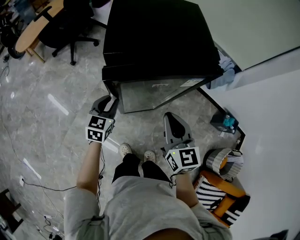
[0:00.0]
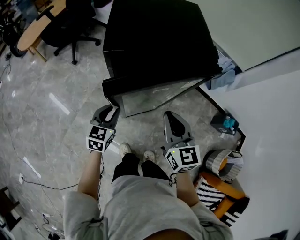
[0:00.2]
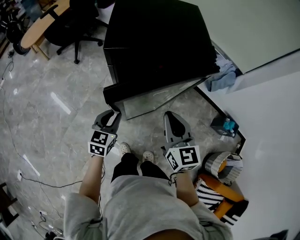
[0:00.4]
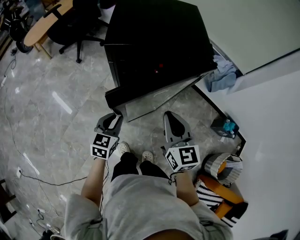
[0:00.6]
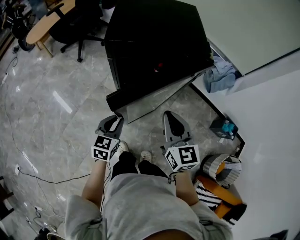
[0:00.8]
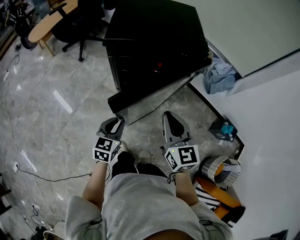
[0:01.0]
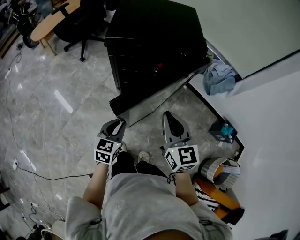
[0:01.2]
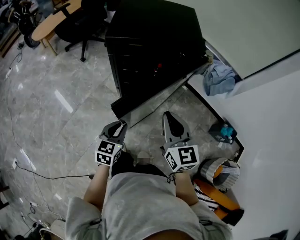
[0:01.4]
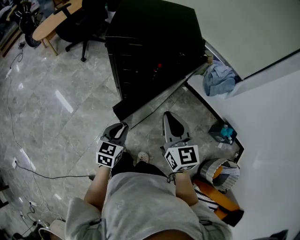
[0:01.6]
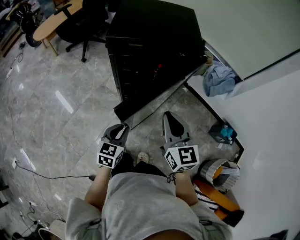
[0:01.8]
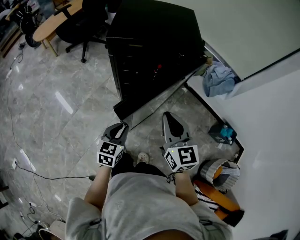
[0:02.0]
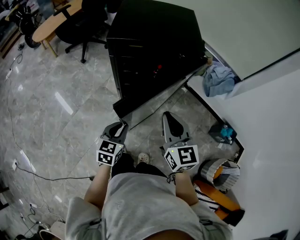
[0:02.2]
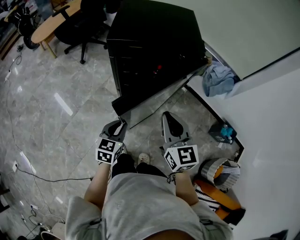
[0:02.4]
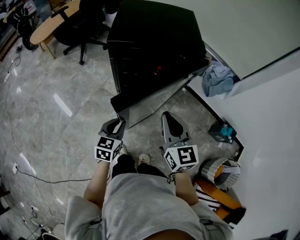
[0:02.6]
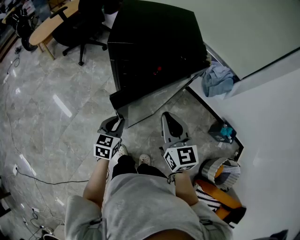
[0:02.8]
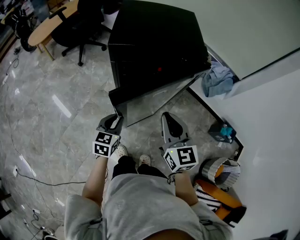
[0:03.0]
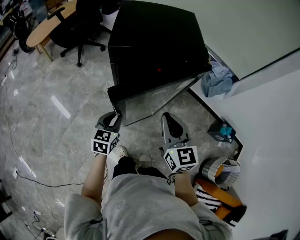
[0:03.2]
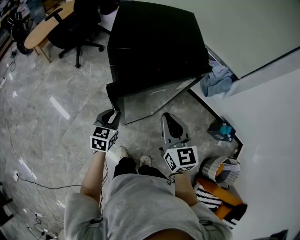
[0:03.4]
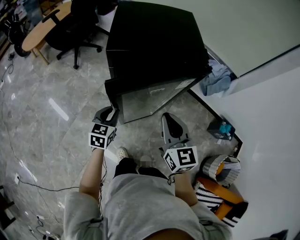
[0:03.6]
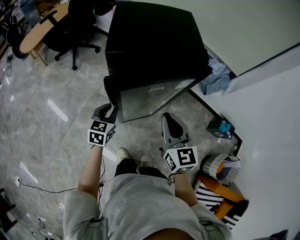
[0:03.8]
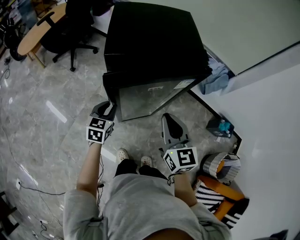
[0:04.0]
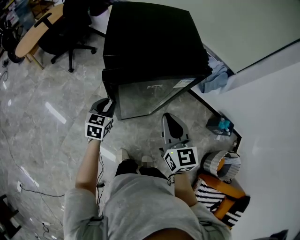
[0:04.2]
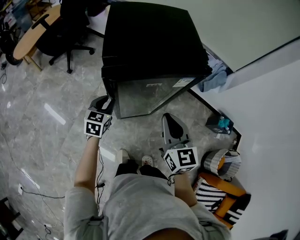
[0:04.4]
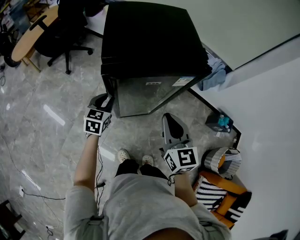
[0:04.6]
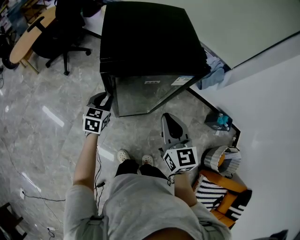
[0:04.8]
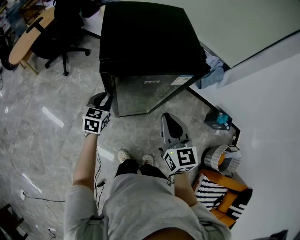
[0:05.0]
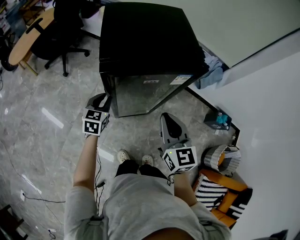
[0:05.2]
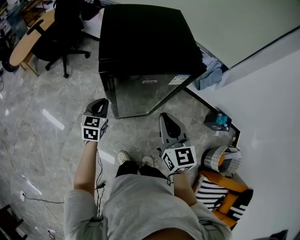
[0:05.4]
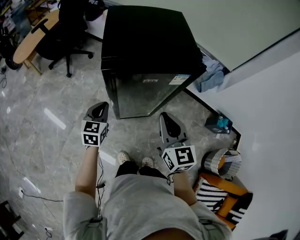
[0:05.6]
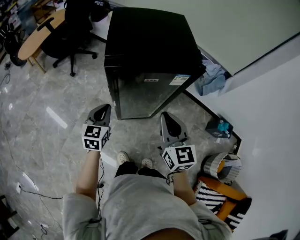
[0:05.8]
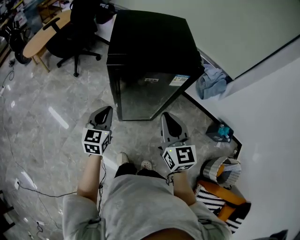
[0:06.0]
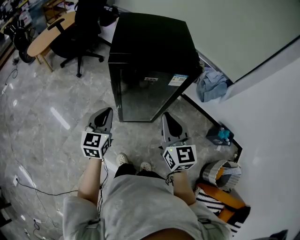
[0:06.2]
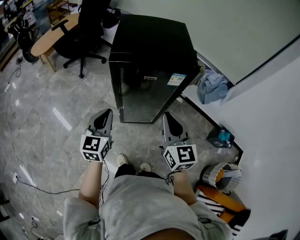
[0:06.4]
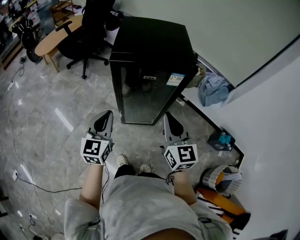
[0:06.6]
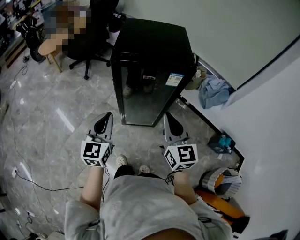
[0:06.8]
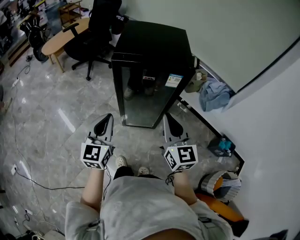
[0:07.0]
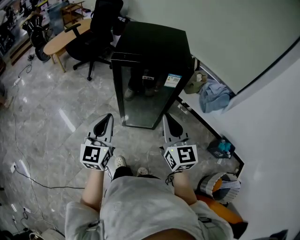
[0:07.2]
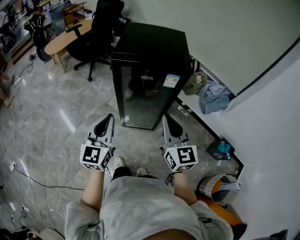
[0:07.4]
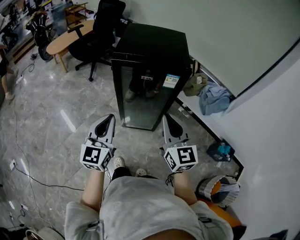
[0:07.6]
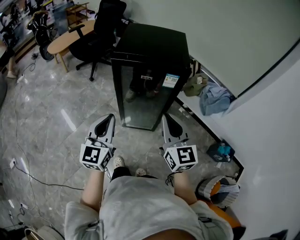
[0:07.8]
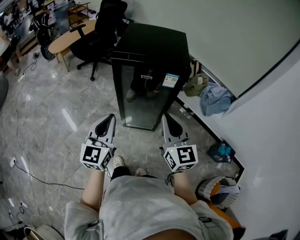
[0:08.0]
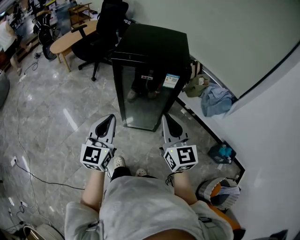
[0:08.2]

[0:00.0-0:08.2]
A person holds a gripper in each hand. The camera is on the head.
0:00.0 to 0:01.6: The left gripper shifts approximately 20 cm backward and to the right; the right gripper heads backward and to the right, covering some 10 cm.
0:01.6 to 0:03.2: The left gripper travels forward and to the left by some 10 cm.
0:03.2 to 0:05.0: The left gripper heads forward, covering roughly 15 cm.
0:05.0 to 0:06.6: The left gripper goes roughly 25 cm backward and upward, and swivels about 30 degrees; the right gripper is displaced backward and upward by some 10 cm.
0:06.6 to 0:08.2: The left gripper is displaced backward and upward by approximately 10 cm; the right gripper moves backward, approximately 5 cm.

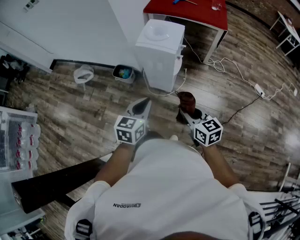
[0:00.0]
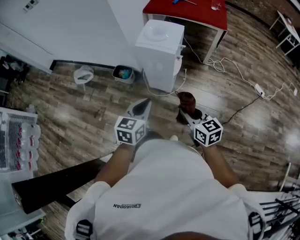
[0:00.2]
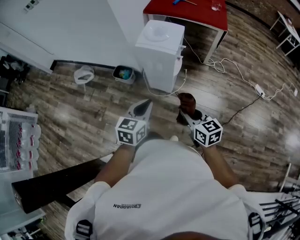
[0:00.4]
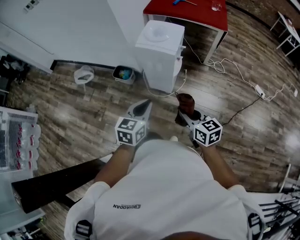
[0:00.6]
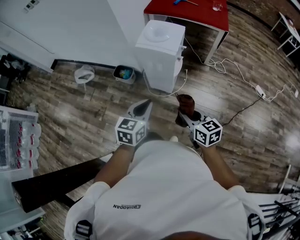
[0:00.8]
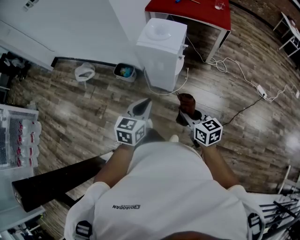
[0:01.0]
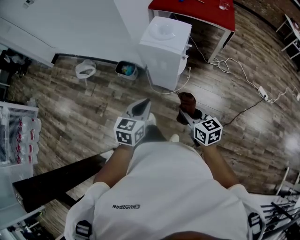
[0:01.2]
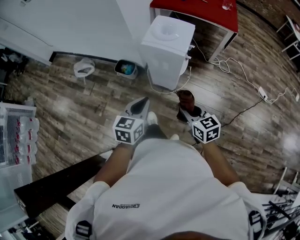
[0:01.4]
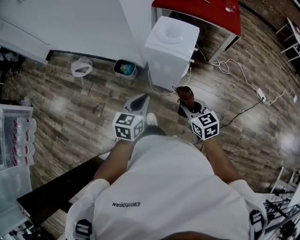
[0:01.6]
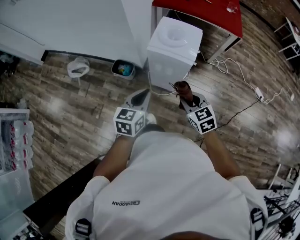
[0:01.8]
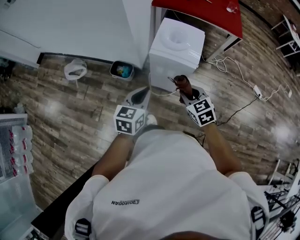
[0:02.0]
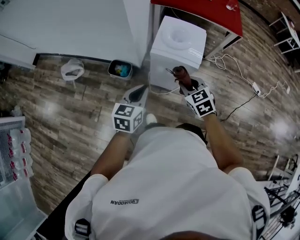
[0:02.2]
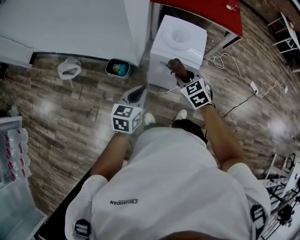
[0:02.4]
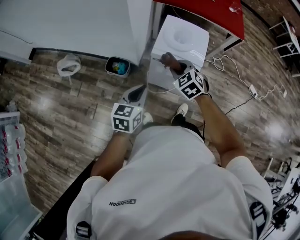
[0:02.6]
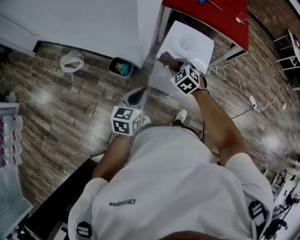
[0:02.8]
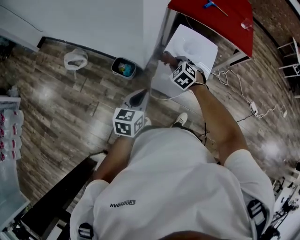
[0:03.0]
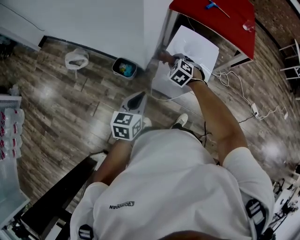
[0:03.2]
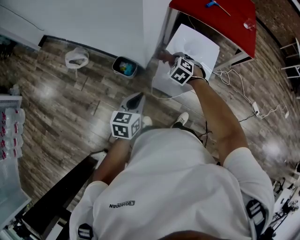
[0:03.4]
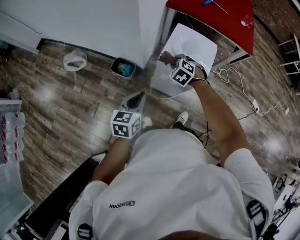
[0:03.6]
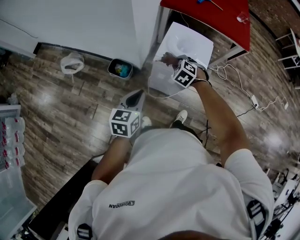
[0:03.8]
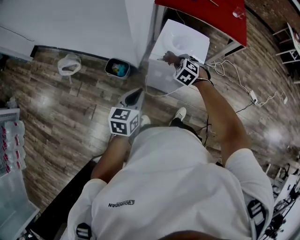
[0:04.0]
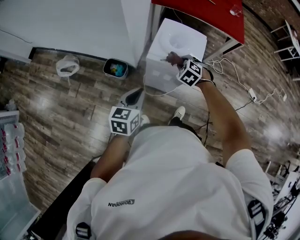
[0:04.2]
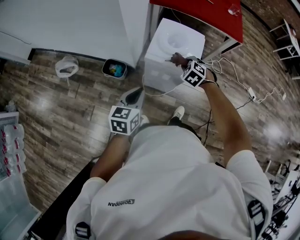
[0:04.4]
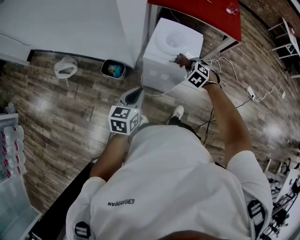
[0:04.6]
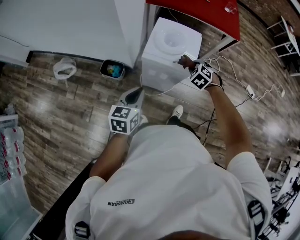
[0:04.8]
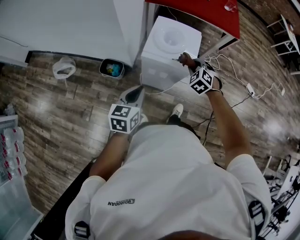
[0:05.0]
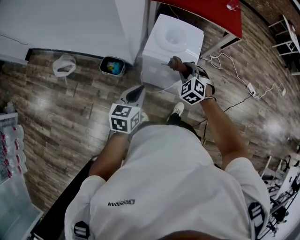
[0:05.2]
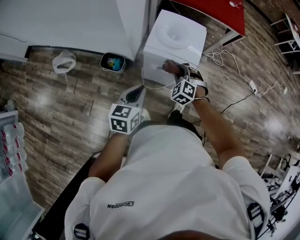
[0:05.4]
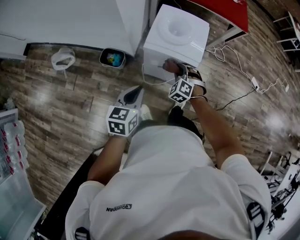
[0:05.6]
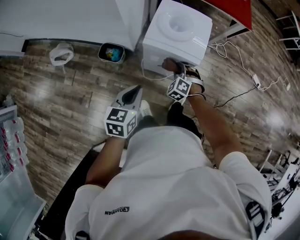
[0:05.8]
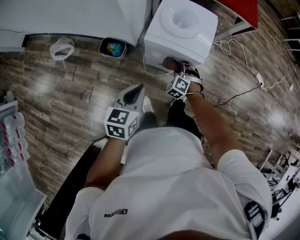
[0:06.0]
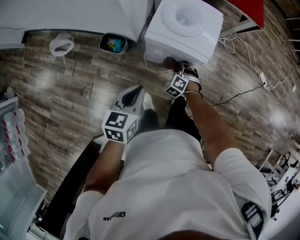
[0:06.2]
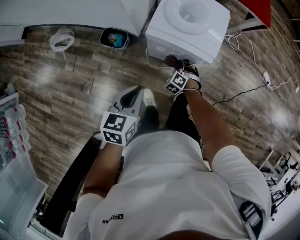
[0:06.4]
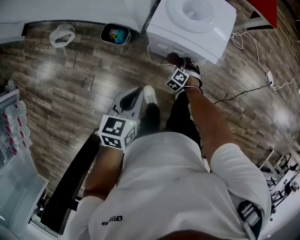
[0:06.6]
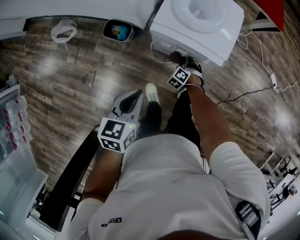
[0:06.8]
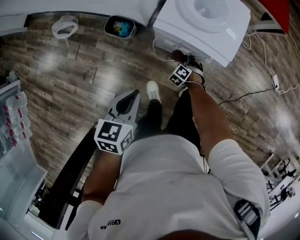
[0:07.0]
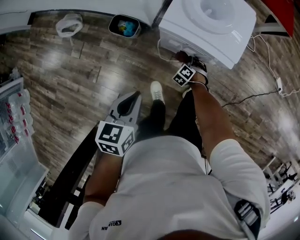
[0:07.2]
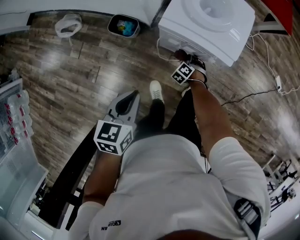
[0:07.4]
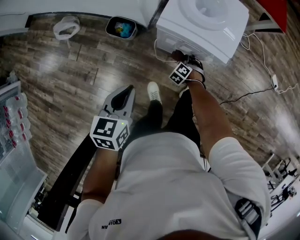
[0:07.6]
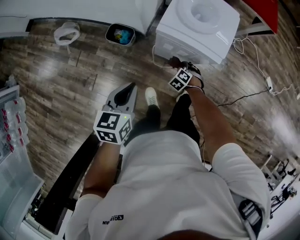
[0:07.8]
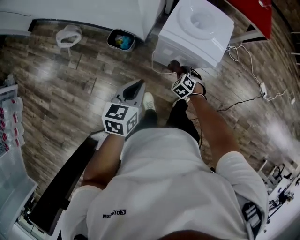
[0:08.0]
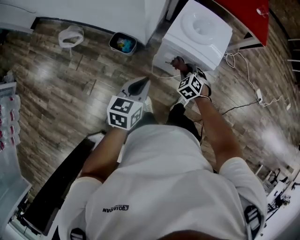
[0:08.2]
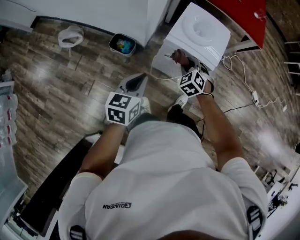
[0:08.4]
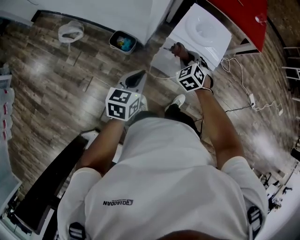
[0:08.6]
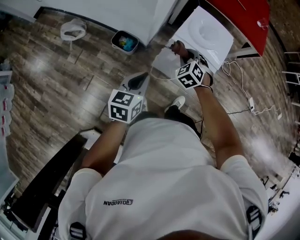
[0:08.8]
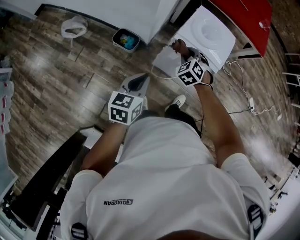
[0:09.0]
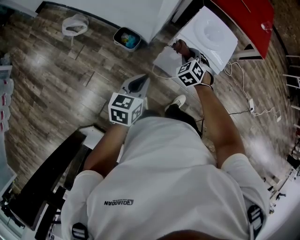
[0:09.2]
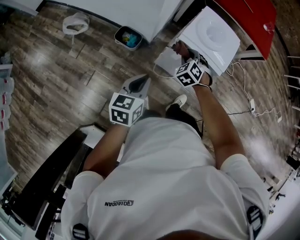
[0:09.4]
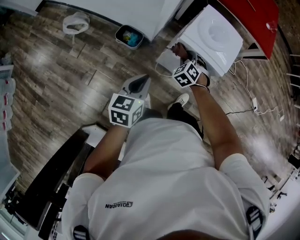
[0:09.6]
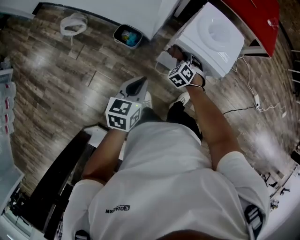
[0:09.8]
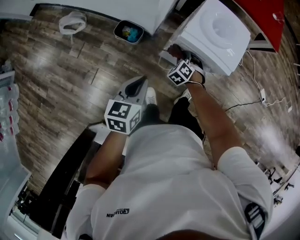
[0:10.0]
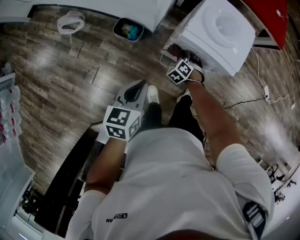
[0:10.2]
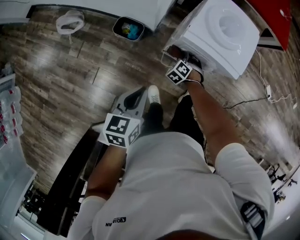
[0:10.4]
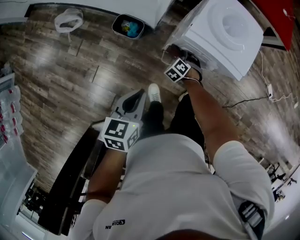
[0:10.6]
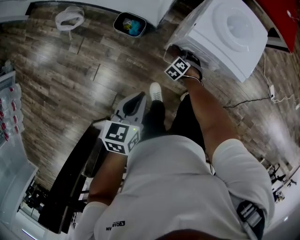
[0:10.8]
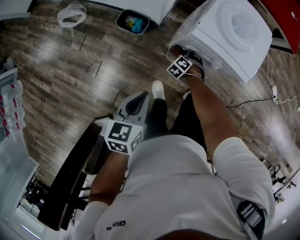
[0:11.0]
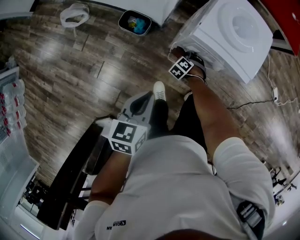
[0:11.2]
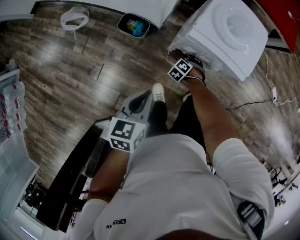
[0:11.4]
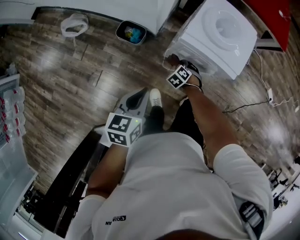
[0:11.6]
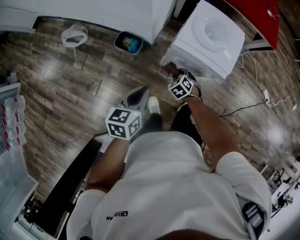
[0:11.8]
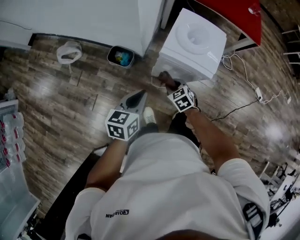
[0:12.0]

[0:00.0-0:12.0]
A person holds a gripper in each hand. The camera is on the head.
0:00.0 to 0:01.6: The right gripper travels forward by some 10 cm. Meanwhile the left gripper travels forward and to the left by roughly 10 cm.
0:01.6 to 0:03.0: The left gripper travels forward and to the left by about 15 cm, while the right gripper moves forward and to the left, some 35 cm, and rotates around the line of its fingers by about 40 degrees, counterclockwise from behind.
0:03.0 to 0:04.4: The right gripper heads to the right, covering approximately 15 cm.
0:04.4 to 0:06.0: The right gripper heads downward and backward, covering roughly 15 cm.
0:06.0 to 0:07.6: The right gripper is displaced downward by some 15 cm, while the left gripper ends up about 5 cm from where it was.
0:07.6 to 0:09.0: The right gripper goes about 30 cm upward, and turns by about 20 degrees.
0:09.0 to 0:10.4: The right gripper moves downward, roughly 25 cm, while the left gripper goes about 5 cm downward.
0:10.4 to 0:12.0: The right gripper goes approximately 15 cm upward and backward, and rotates about 40 degrees, while the left gripper moves roughly 5 cm.

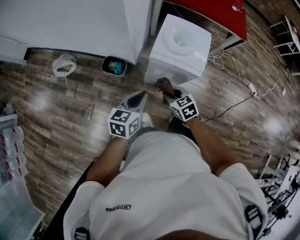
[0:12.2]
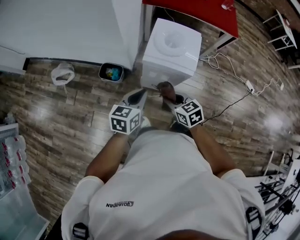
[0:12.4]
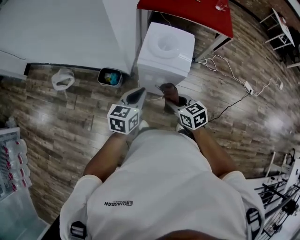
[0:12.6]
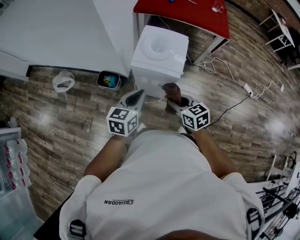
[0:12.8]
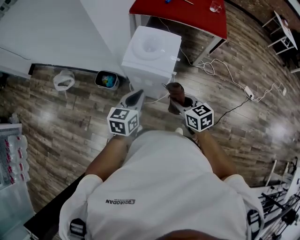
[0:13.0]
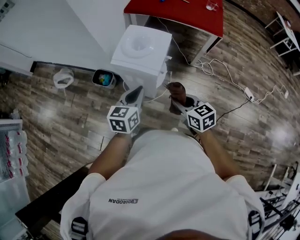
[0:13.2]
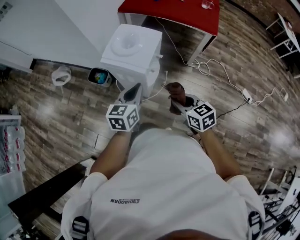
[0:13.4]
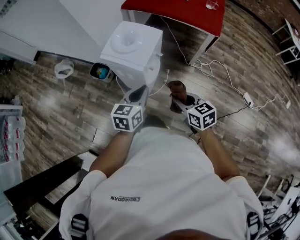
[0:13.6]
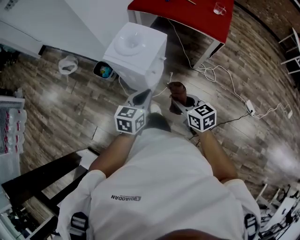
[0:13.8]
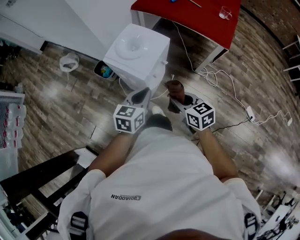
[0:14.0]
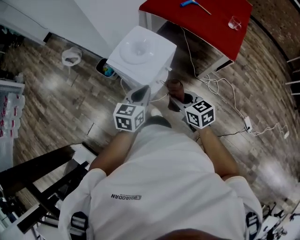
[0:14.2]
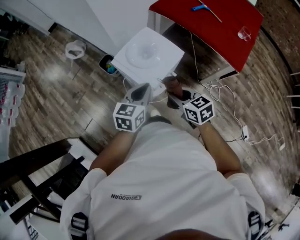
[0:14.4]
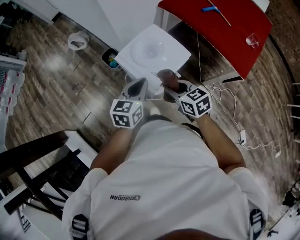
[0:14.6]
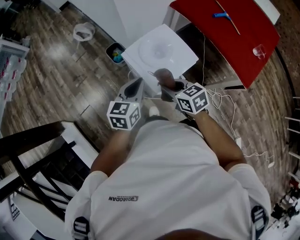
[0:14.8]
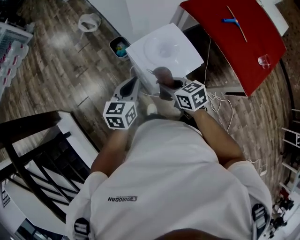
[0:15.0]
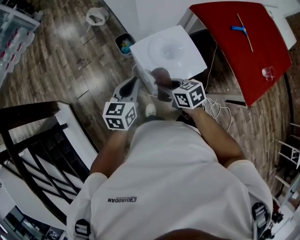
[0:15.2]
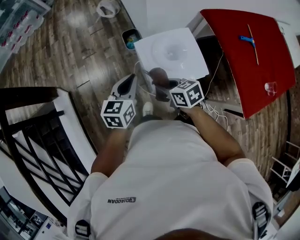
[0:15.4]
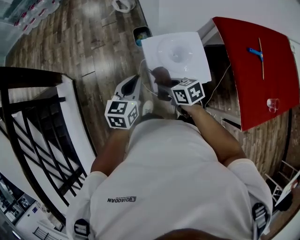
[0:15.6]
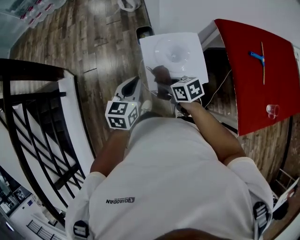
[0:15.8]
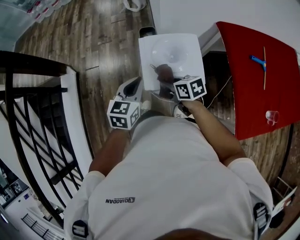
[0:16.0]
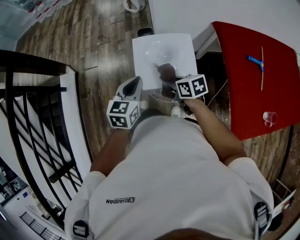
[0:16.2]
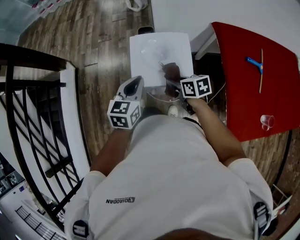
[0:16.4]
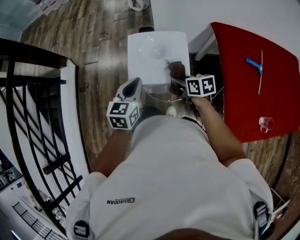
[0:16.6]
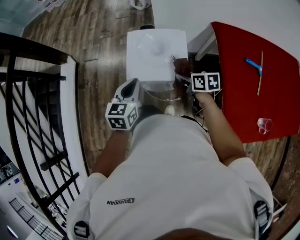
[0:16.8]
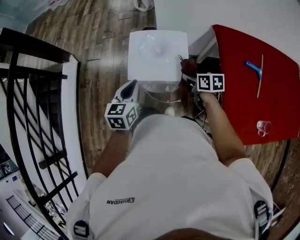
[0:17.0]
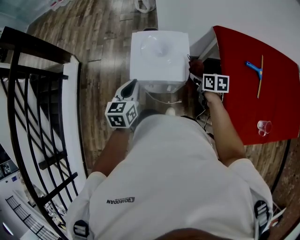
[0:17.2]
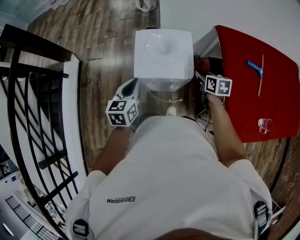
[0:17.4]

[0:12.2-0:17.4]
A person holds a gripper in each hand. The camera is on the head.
0:12.2 to 0:14.0: The two grippers go some 30 cm to the right.
0:14.0 to 0:15.6: The right gripper moves about 20 cm, and swivels approximately 60 degrees; the left gripper ends up some 15 cm from where it was, and swivels approximately 50 degrees.
0:15.6 to 0:17.4: The left gripper shifts approximately 10 cm backward and to the right; the right gripper travels to the right by approximately 25 cm.
